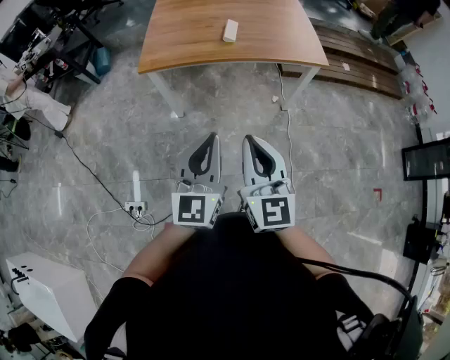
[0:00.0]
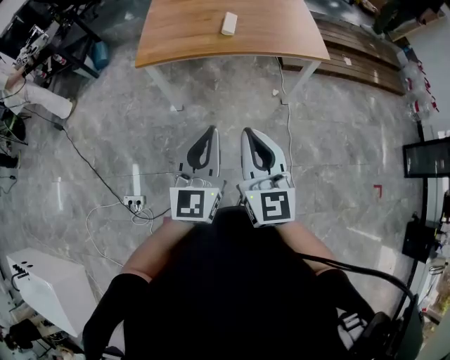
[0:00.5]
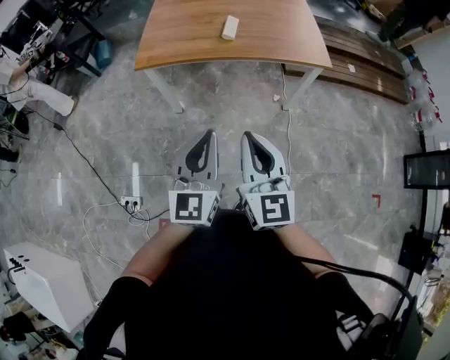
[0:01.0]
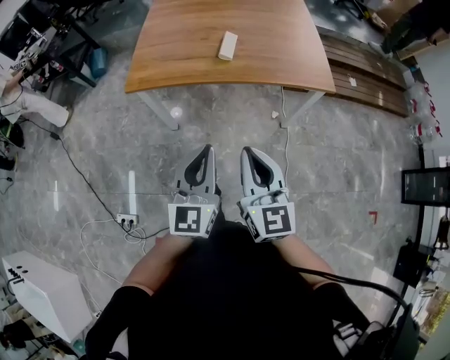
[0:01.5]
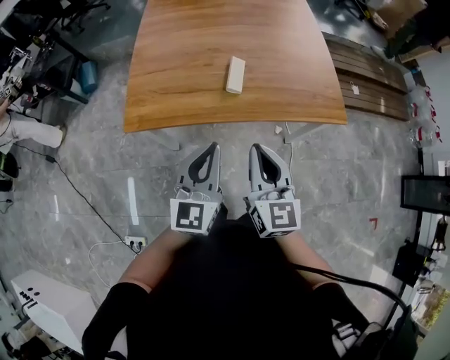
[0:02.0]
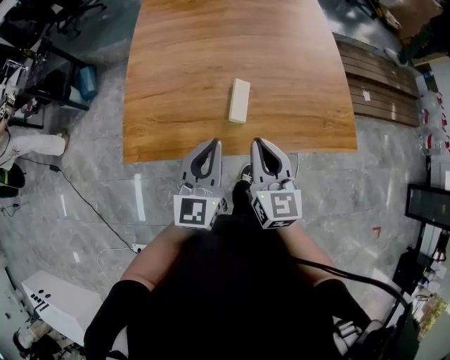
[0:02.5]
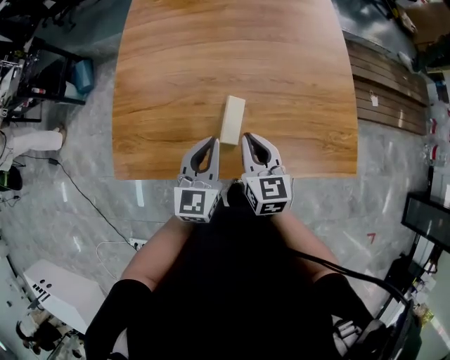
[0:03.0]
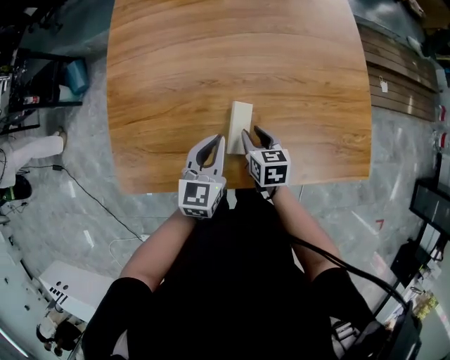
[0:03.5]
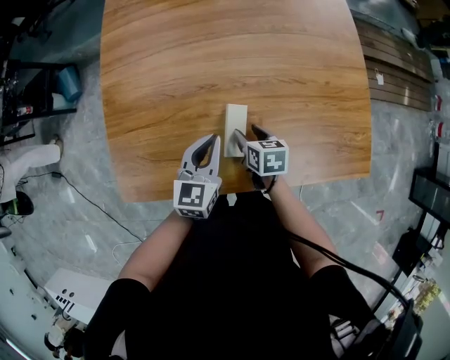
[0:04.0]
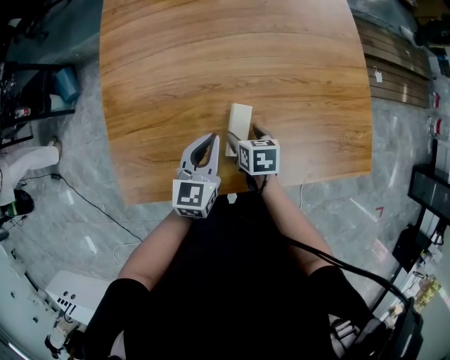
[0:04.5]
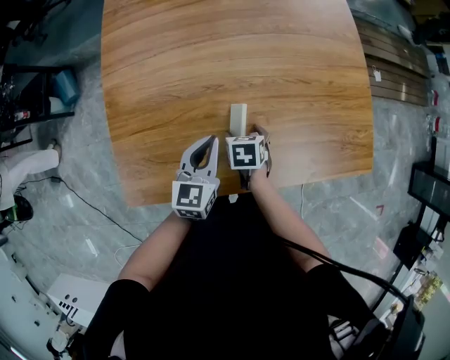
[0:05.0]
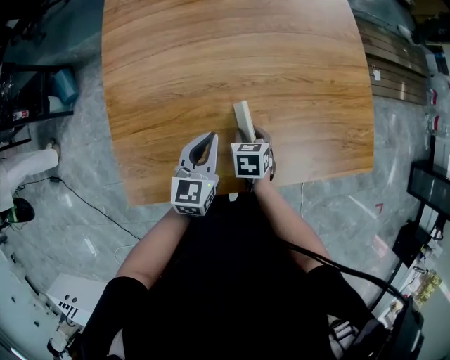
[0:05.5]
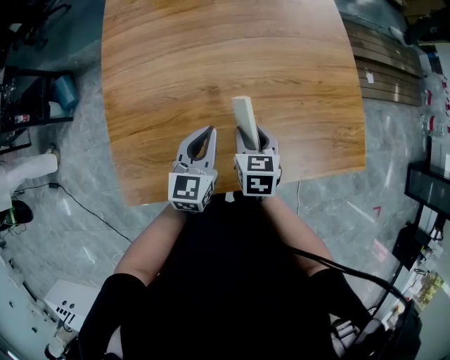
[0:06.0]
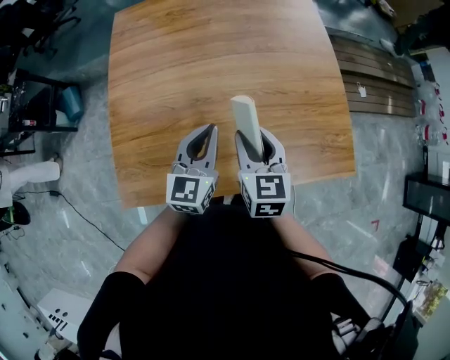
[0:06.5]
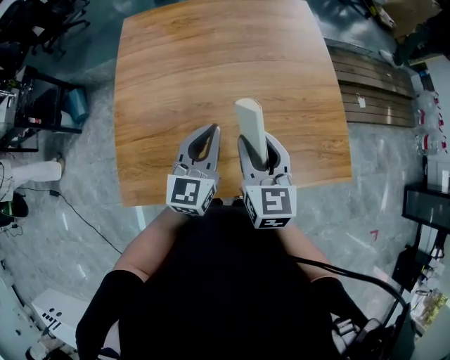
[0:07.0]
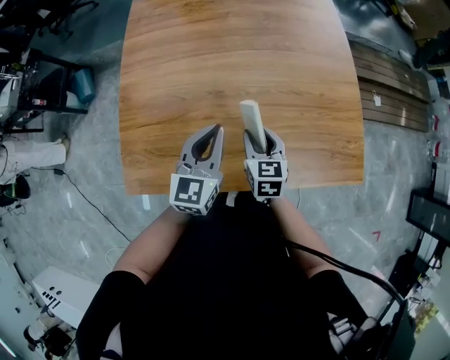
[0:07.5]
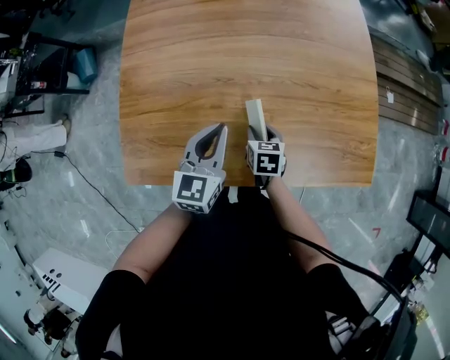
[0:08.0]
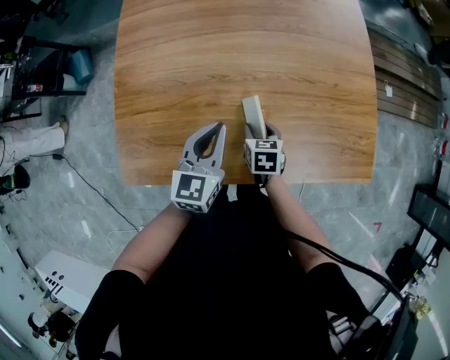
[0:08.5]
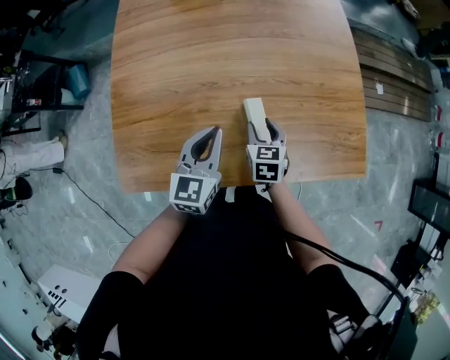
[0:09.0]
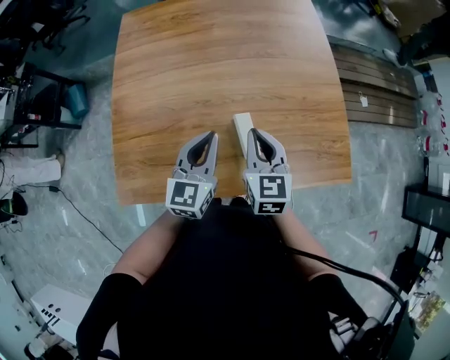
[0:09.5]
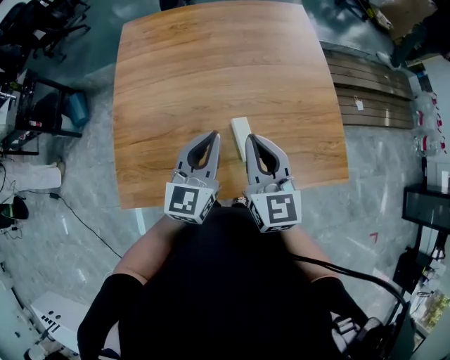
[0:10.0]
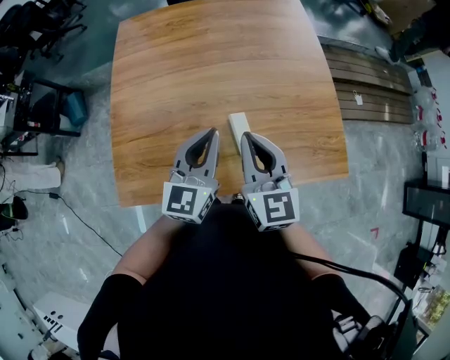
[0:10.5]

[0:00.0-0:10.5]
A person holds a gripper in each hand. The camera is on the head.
0.0 to 2.0 s: The two grippers go about 40 cm forward.
2.0 to 4.0 s: Both grippers move forward and downward, roughly 50 cm. The right gripper tips its fingers downward by about 40 degrees, and opens up, while the left gripper swivels some 20 degrees.
4.0 to 6.5 s: The left gripper heads upward, covering some 10 cm, while the right gripper is displaced upward by some 25 cm, rotates roughly 40 degrees, and opens, then closes again.
6.5 to 8.5 s: The right gripper heads downward, covering roughly 25 cm, and rotates about 30 degrees. Meanwhile the left gripper is displaced downward by approximately 5 cm.
8.5 to 10.5 s: The right gripper heads upward, covering about 30 cm, tips its fingers upward by about 40 degrees, and closes; the left gripper heads upward, covering roughly 15 cm.

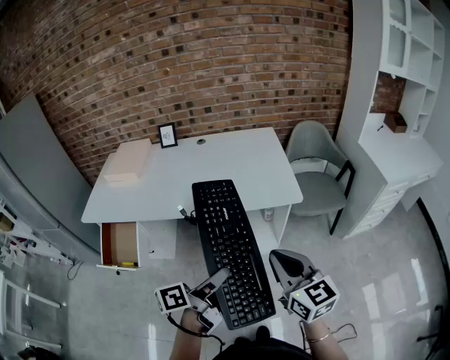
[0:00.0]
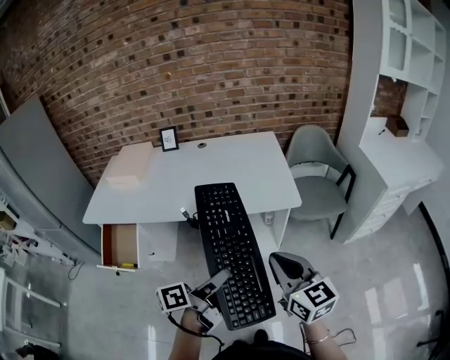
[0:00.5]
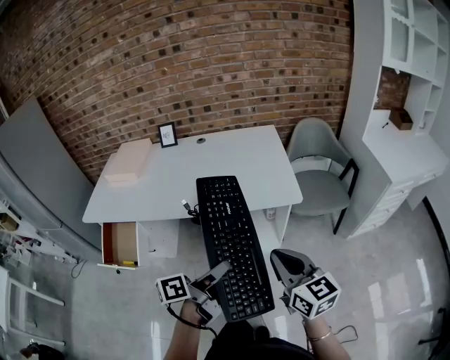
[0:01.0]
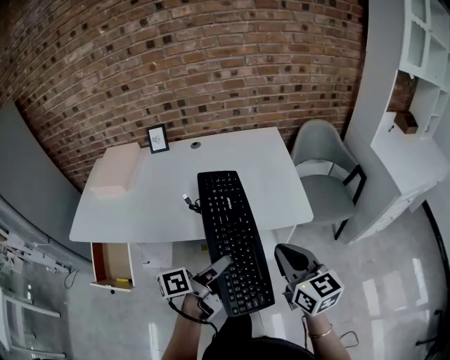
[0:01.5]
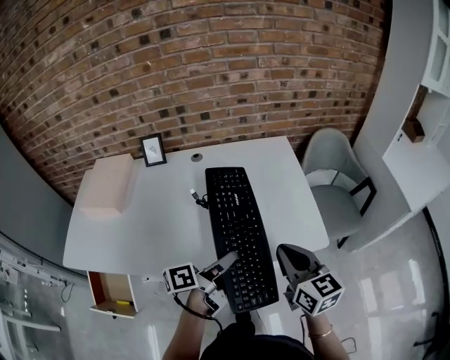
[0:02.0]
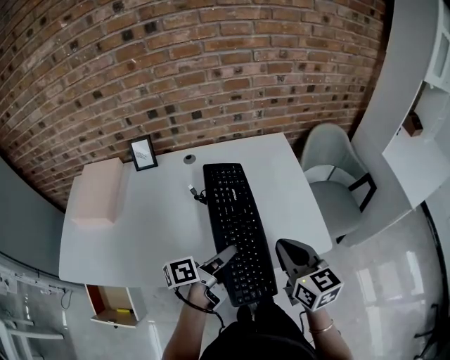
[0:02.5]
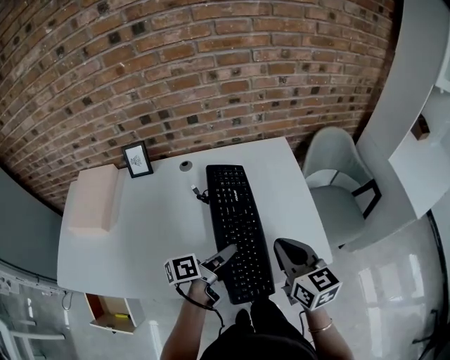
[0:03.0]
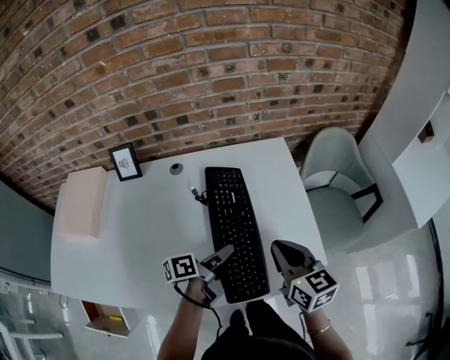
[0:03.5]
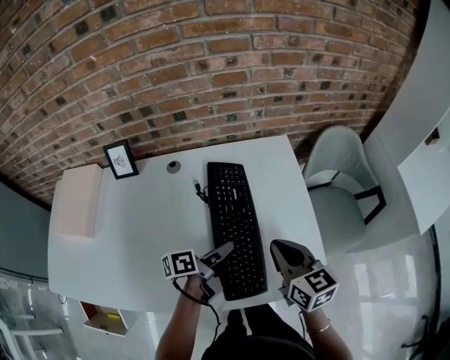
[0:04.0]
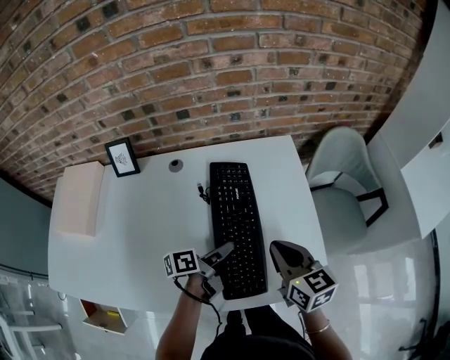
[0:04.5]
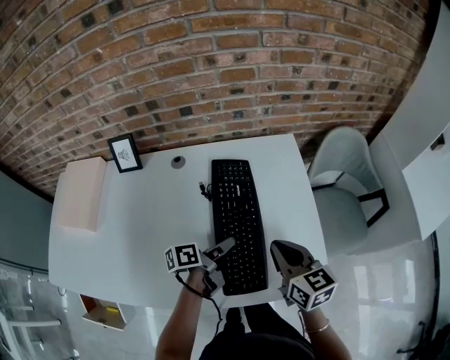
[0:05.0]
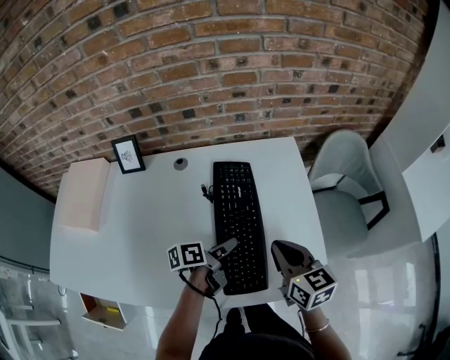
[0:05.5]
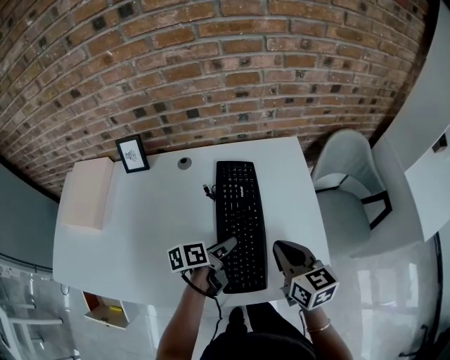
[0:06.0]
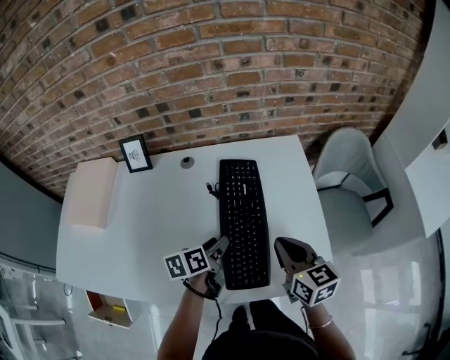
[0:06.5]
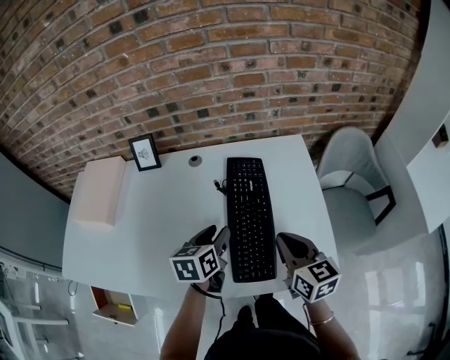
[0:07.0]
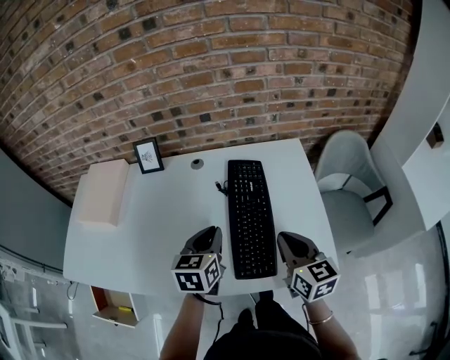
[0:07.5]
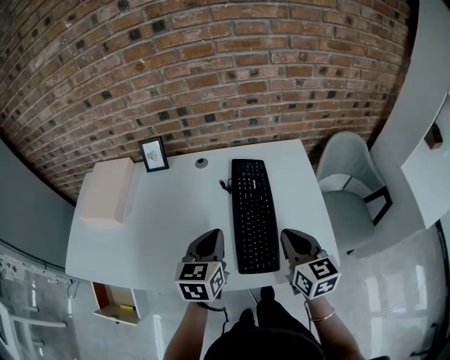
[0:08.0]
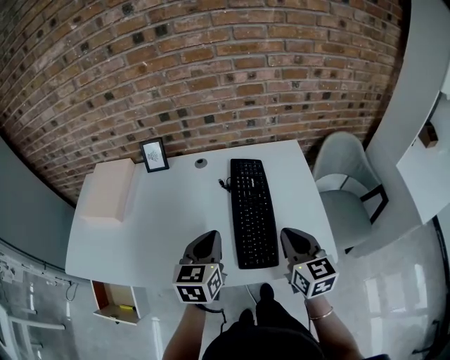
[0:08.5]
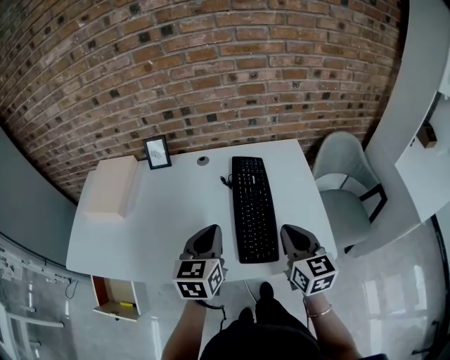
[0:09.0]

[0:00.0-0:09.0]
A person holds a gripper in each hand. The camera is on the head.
0.0 to 2.0 s: Both grippers travel together forward, some 30 cm.
2.0 to 4.5 s: The left gripper moves forward and downward, roughly 25 cm. Meanwhile the right gripper travels forward by roughly 20 cm.
4.5 to 7.0 s: The left gripper moves upward and to the left, approximately 10 cm, and swivels about 50 degrees.
7.0 to 9.0 s: The left gripper goes approximately 15 cm upward and backward, rotates roughly 20 degrees, and closes. Meanwhile the right gripper goes roughly 5 cm backward.

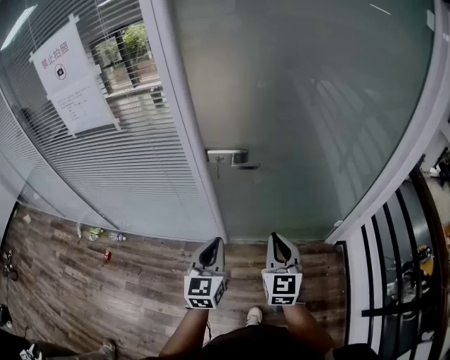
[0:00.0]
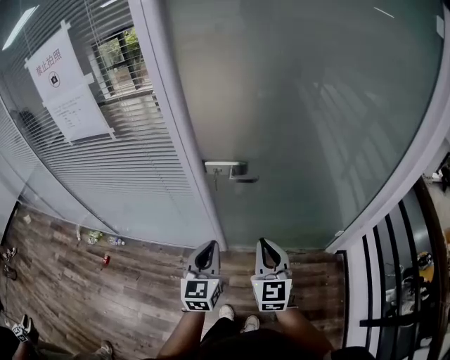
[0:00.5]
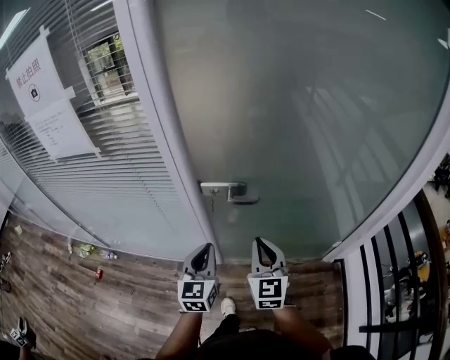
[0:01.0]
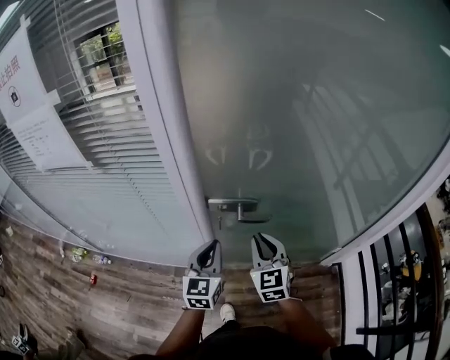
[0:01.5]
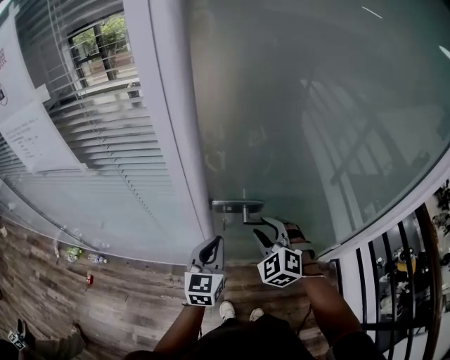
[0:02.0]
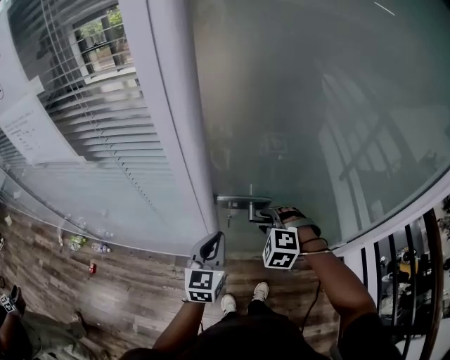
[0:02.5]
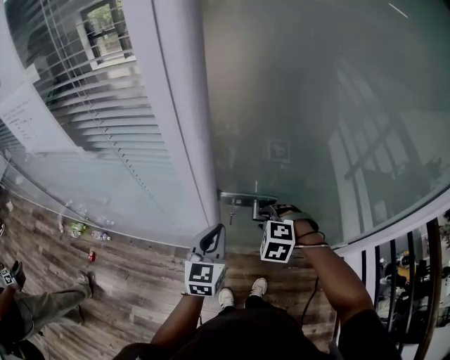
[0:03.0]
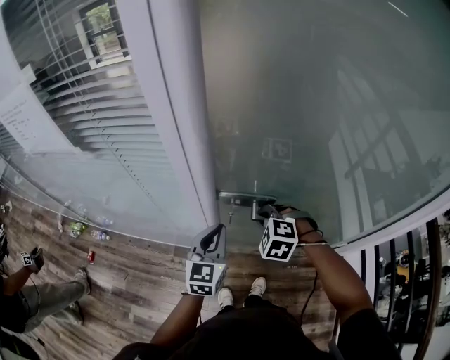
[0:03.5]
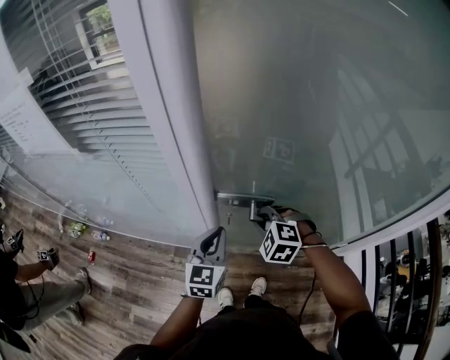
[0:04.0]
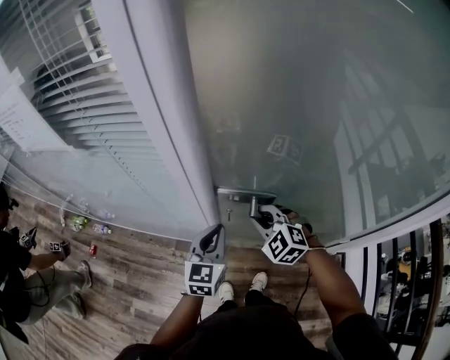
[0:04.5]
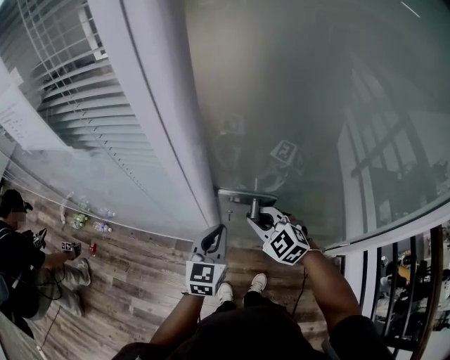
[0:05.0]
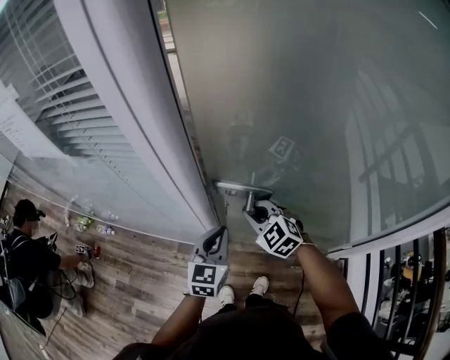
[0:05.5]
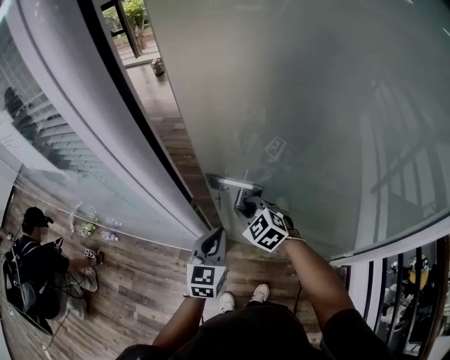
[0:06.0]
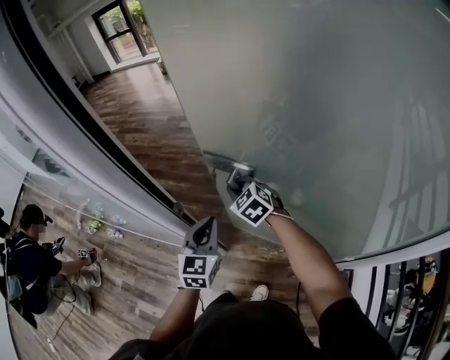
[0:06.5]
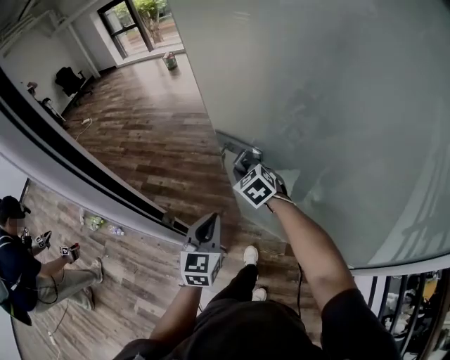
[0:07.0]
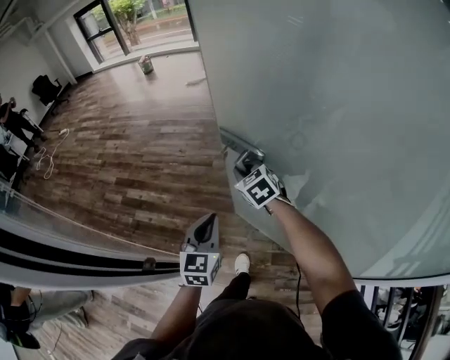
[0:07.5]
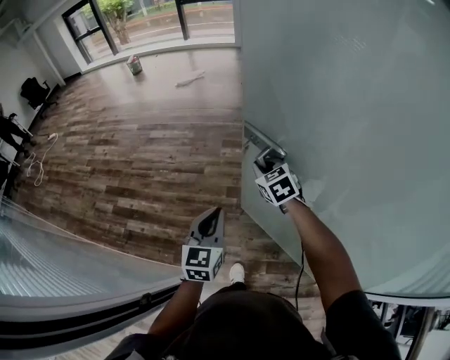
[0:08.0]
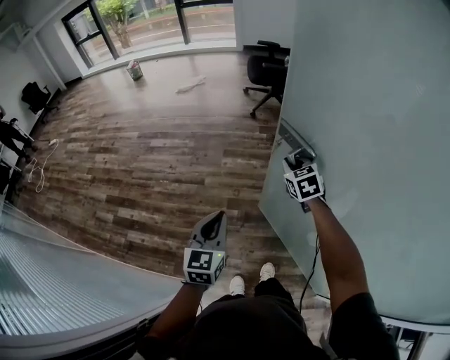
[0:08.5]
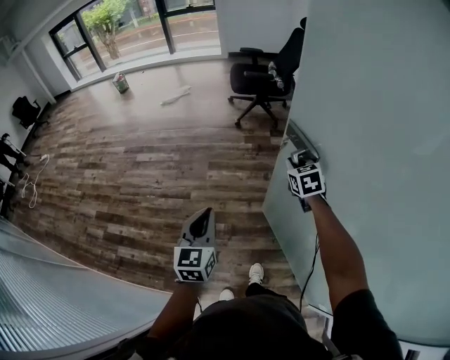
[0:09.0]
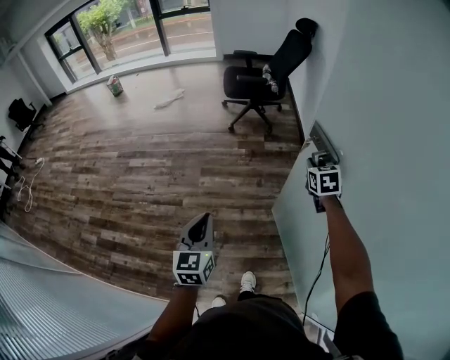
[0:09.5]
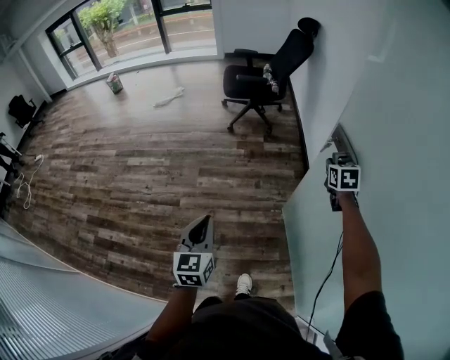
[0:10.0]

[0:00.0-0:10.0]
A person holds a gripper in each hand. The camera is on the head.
0.0 to 2.0 s: The grippers both shift forward by some 30 cm. The right gripper twists about 50 degrees counterclockwise, seen from behind, and opens its fingers.
2.0 to 4.0 s: The right gripper shifts roughly 10 cm downward, turns by roughly 30 degrees, and closes up.
4.0 to 6.0 s: The left gripper ends up some 5 cm from where it was; the right gripper is displaced forward by roughly 10 cm, and rotates approximately 30 degrees.
6.0 to 8.0 s: The grippers both shift forward and to the right by approximately 40 cm. The right gripper swivels some 30 degrees.
8.0 to 10.0 s: The right gripper is displaced to the right and forward by roughly 60 cm, and turns by roughly 40 degrees. Meanwhile the left gripper goes about 30 cm forward and to the right.
